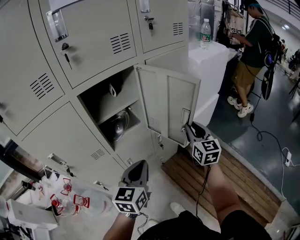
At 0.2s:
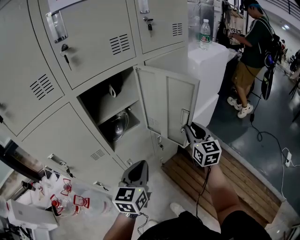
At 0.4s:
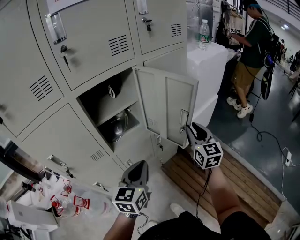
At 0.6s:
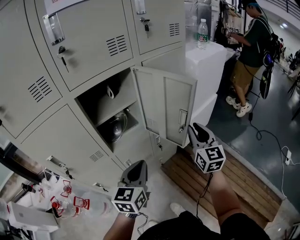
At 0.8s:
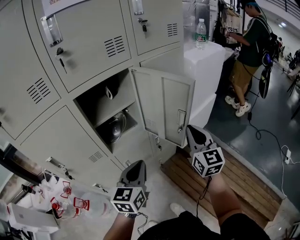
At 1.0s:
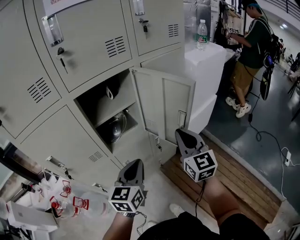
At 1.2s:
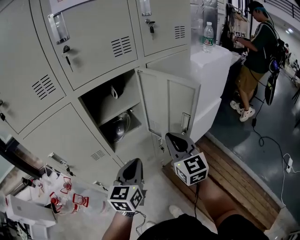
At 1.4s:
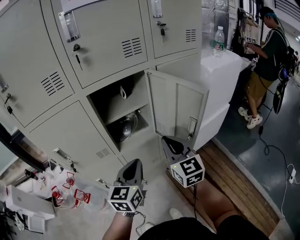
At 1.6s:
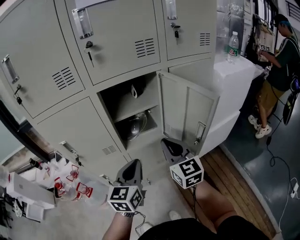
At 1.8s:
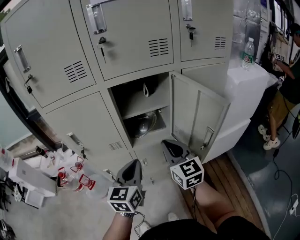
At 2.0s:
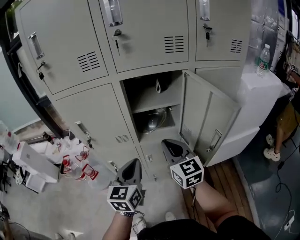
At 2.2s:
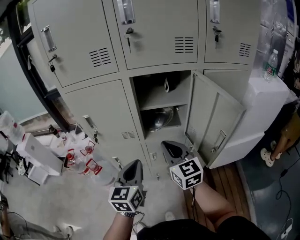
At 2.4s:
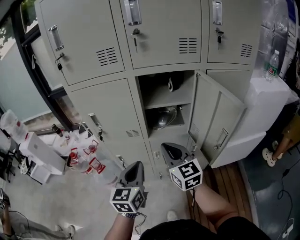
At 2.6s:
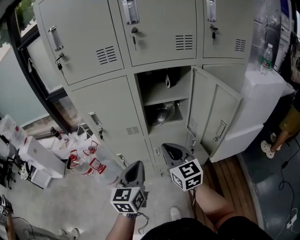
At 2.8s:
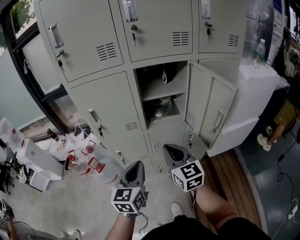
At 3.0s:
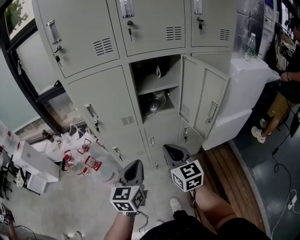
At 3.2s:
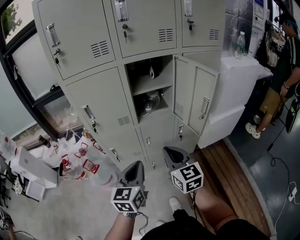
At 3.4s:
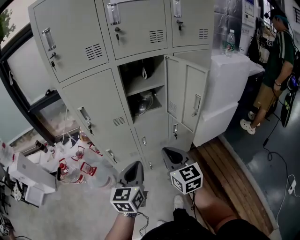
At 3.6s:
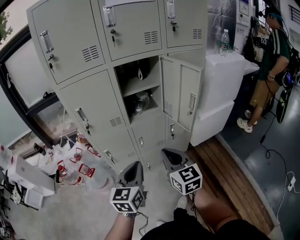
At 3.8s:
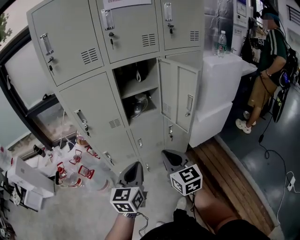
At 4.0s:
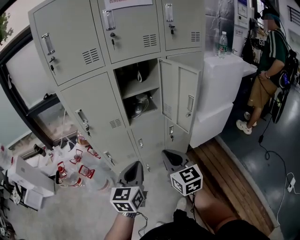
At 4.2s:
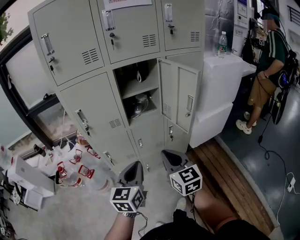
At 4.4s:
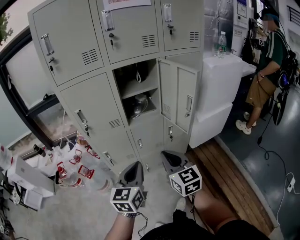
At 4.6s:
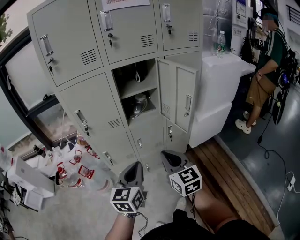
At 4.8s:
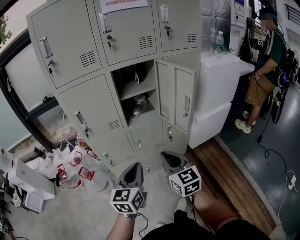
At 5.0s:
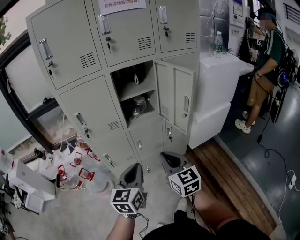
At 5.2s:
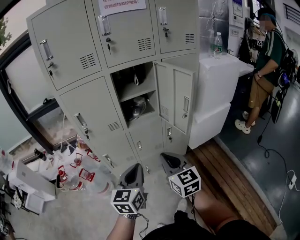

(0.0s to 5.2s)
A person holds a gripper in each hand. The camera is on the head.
0.0s - 1.8s: The left gripper shifts by about 5 cm, and swivels about 30 degrees. Meanwhile the right gripper ends up some 20 cm from where it was, rotates roughly 30 degrees, and closes.
1.8s - 3.4s: The grippers both shift backward by some 20 cm.
3.4s - 5.2s: The grippers stay close to where they were, moving slightly.

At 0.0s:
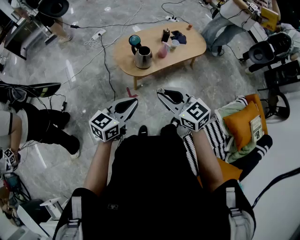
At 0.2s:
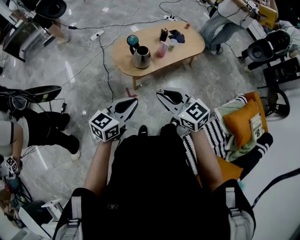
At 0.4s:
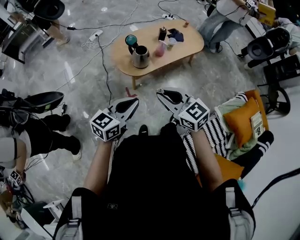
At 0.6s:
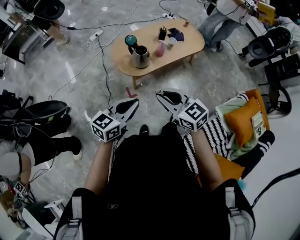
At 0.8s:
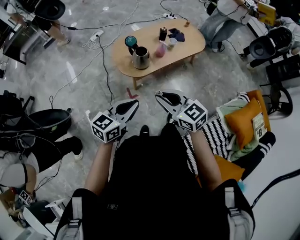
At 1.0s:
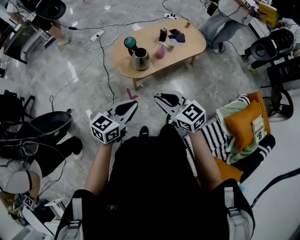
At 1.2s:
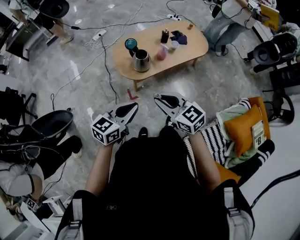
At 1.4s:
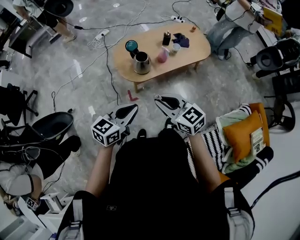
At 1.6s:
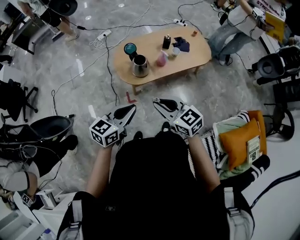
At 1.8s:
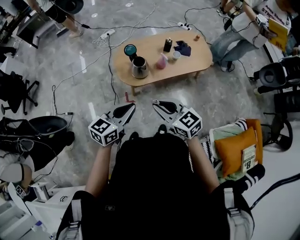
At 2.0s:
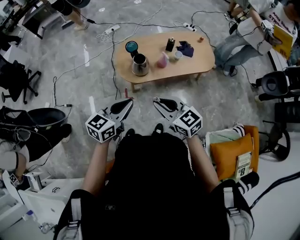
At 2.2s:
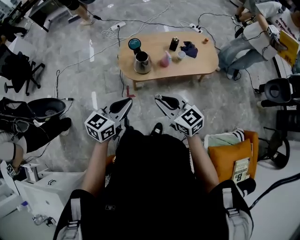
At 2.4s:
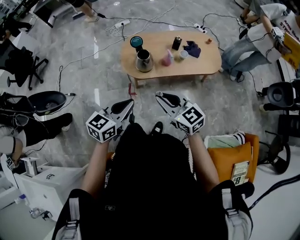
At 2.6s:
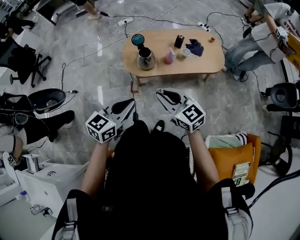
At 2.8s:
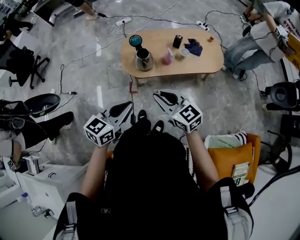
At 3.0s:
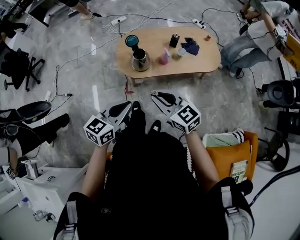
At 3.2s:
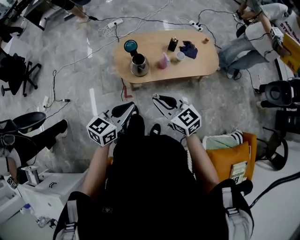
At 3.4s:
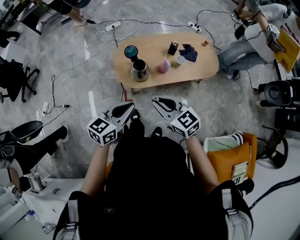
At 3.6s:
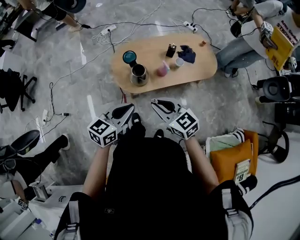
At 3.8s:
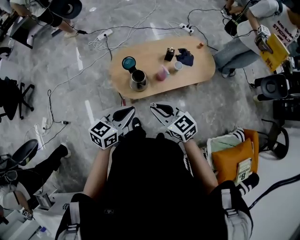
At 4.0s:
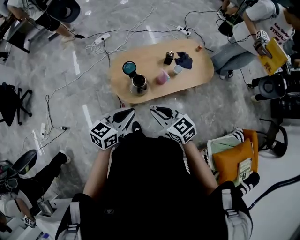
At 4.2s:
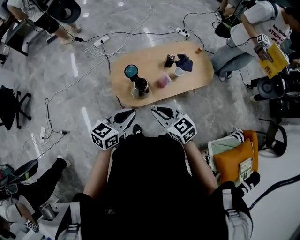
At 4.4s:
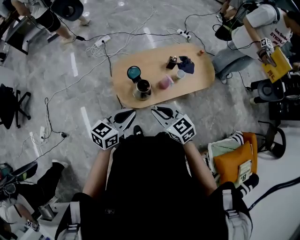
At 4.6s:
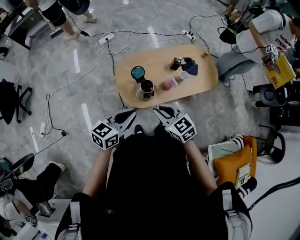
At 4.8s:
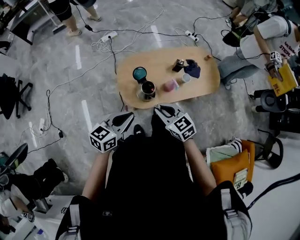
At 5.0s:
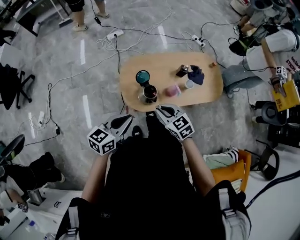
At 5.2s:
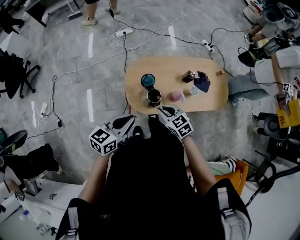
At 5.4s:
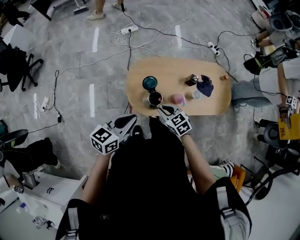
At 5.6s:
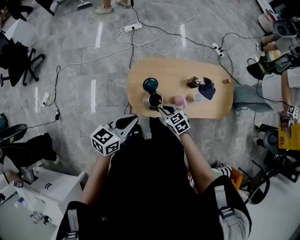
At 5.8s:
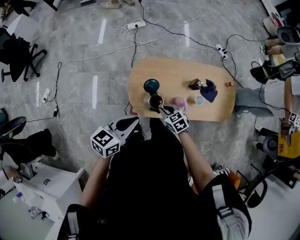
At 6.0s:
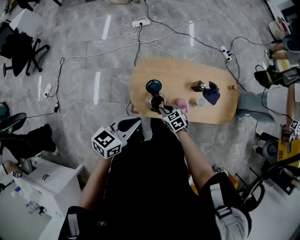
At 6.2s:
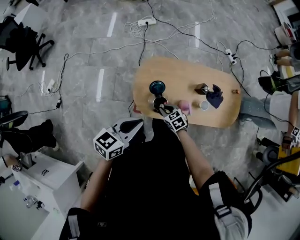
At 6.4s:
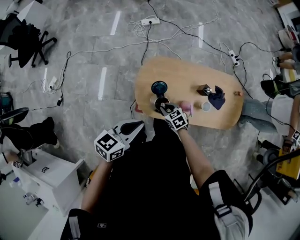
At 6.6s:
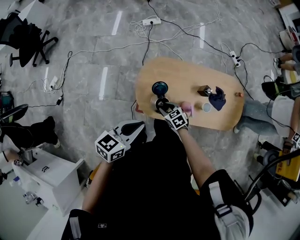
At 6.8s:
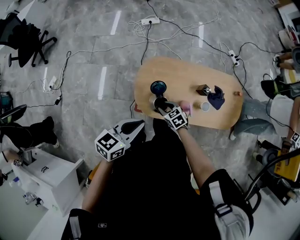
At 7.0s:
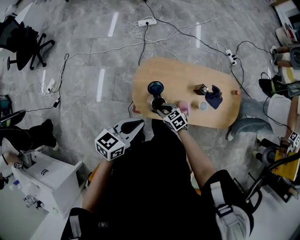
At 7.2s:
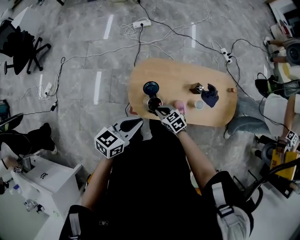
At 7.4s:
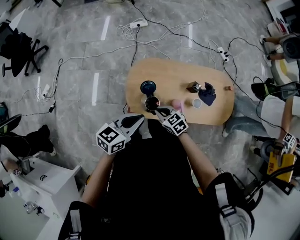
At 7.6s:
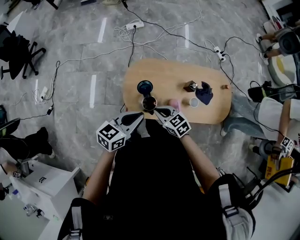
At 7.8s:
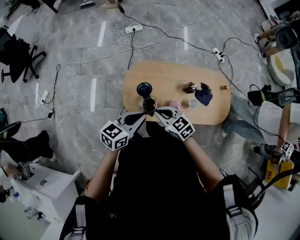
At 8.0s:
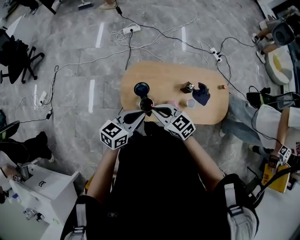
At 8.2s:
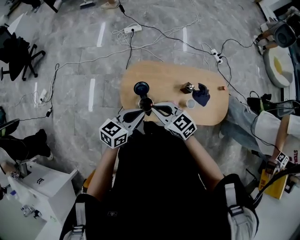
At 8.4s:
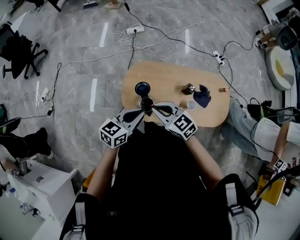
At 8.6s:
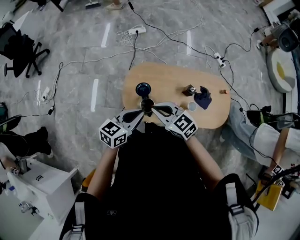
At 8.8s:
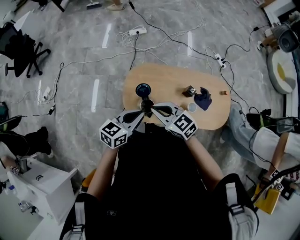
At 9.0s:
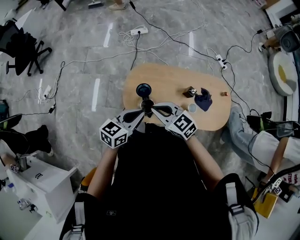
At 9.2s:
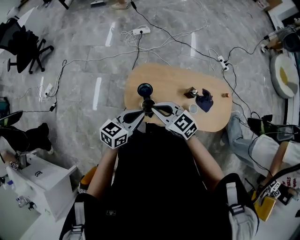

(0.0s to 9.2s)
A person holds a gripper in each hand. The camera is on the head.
0.0s - 1.6s: Both grippers move to the right and forward, about 10 cm.
1.6s - 3.0s: The grippers both shift to the right by approximately 10 cm.
3.0s - 4.6s: The two grippers go approximately 20 cm forward and to the left.
4.6s - 6.2s: The left gripper is displaced forward by some 10 cm, and rotates some 20 degrees. The right gripper moves downward and forward, some 30 cm, and rotates roughly 30 degrees.
6.2s - 7.6s: The right gripper travels upward by approximately 10 cm, and opens, then closes once more. Meanwhile the left gripper moves to the right, about 5 cm.
7.6s - 9.2s: The right gripper is displaced upward by about 10 cm.

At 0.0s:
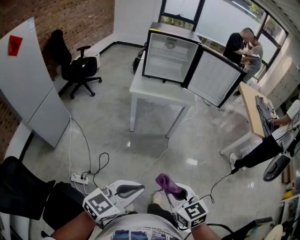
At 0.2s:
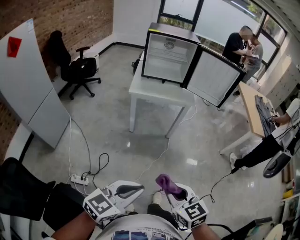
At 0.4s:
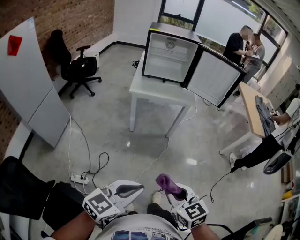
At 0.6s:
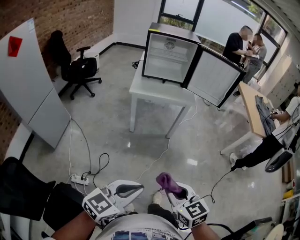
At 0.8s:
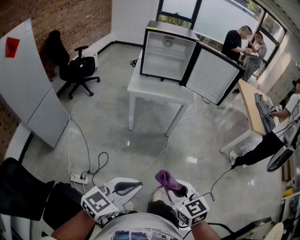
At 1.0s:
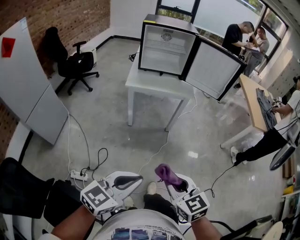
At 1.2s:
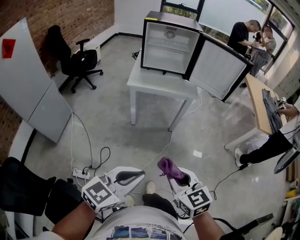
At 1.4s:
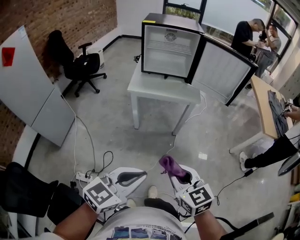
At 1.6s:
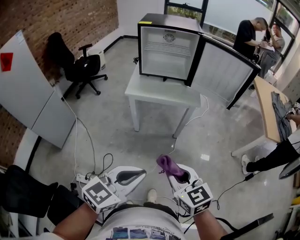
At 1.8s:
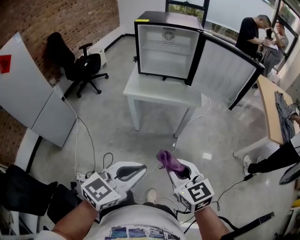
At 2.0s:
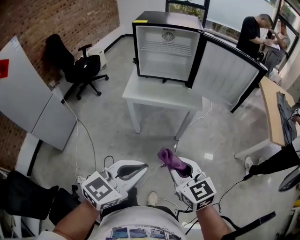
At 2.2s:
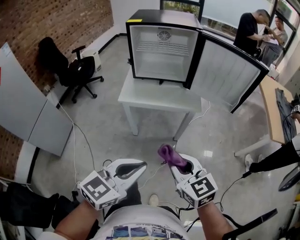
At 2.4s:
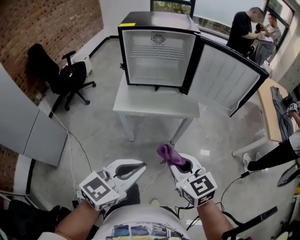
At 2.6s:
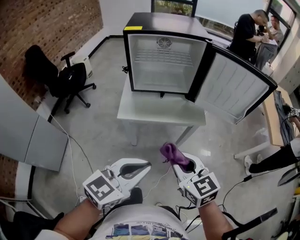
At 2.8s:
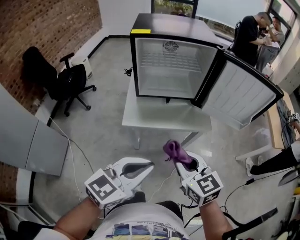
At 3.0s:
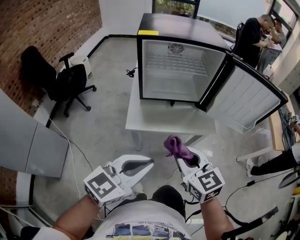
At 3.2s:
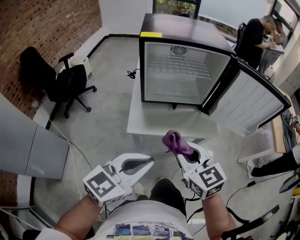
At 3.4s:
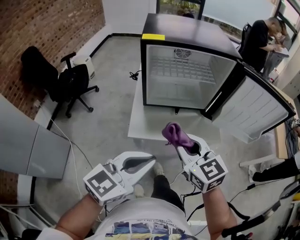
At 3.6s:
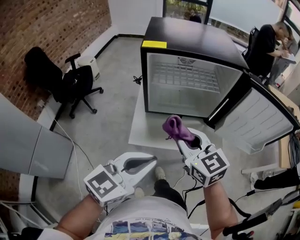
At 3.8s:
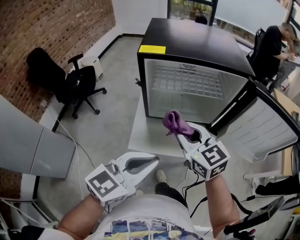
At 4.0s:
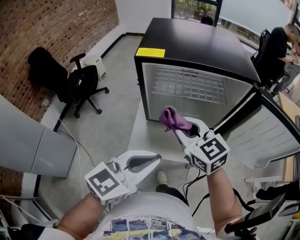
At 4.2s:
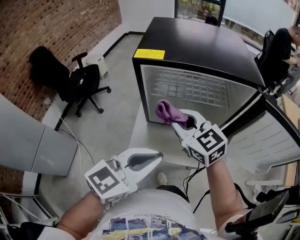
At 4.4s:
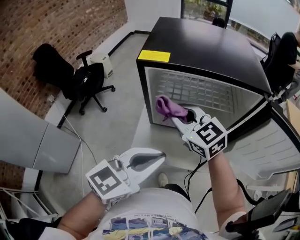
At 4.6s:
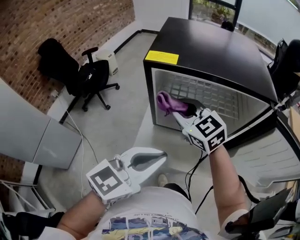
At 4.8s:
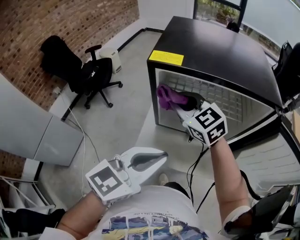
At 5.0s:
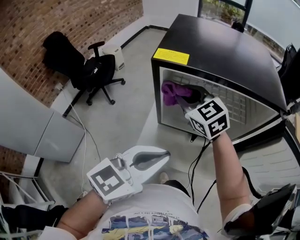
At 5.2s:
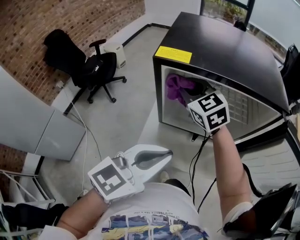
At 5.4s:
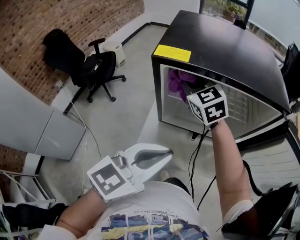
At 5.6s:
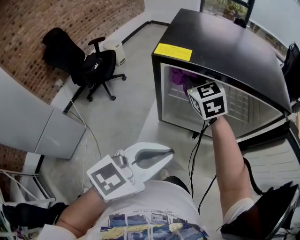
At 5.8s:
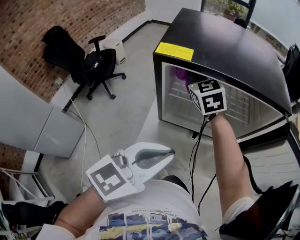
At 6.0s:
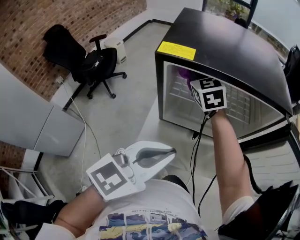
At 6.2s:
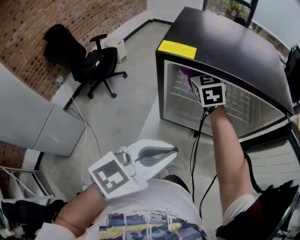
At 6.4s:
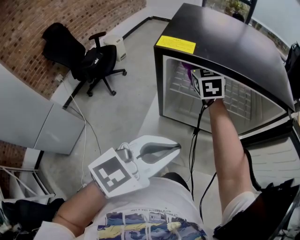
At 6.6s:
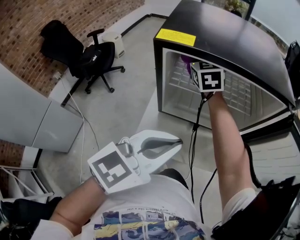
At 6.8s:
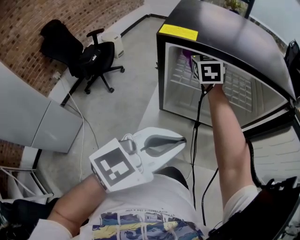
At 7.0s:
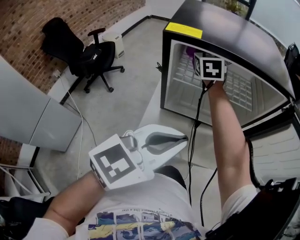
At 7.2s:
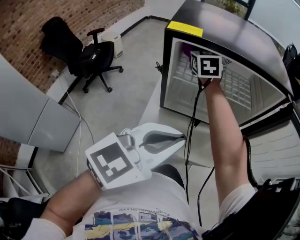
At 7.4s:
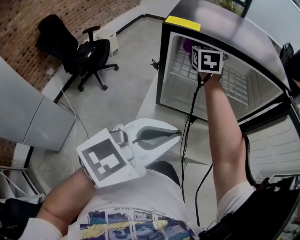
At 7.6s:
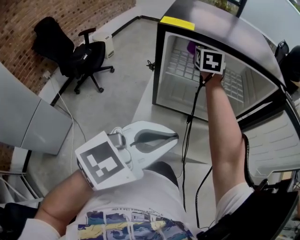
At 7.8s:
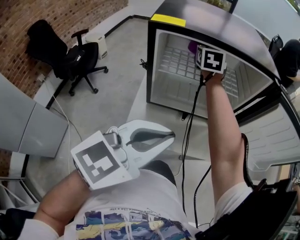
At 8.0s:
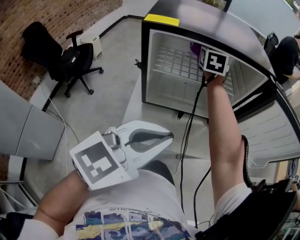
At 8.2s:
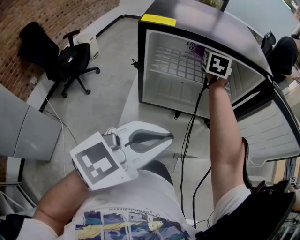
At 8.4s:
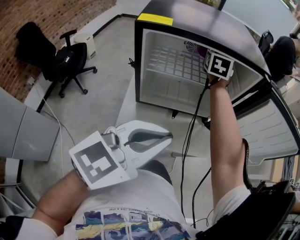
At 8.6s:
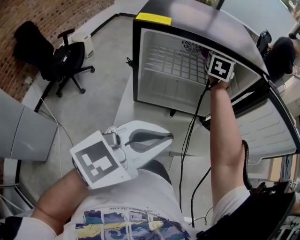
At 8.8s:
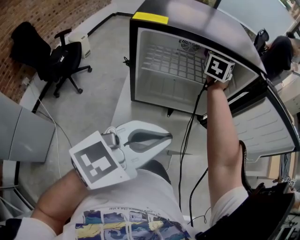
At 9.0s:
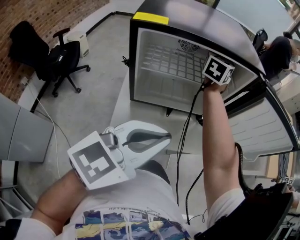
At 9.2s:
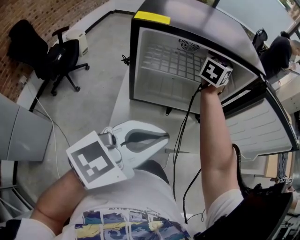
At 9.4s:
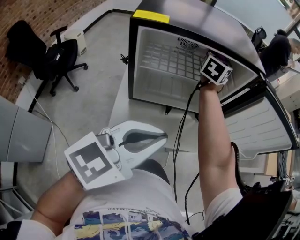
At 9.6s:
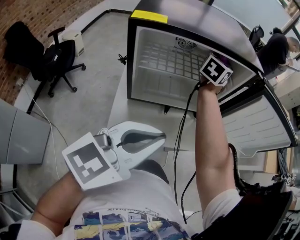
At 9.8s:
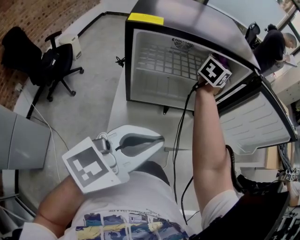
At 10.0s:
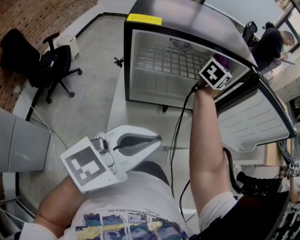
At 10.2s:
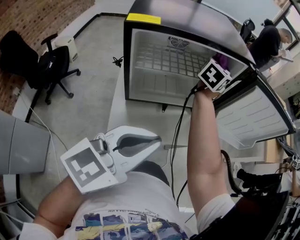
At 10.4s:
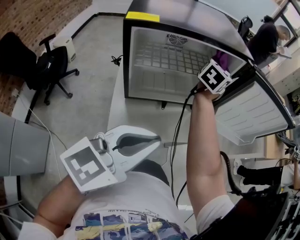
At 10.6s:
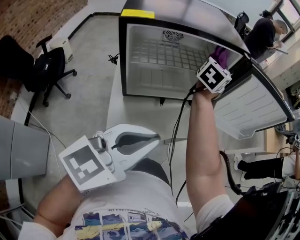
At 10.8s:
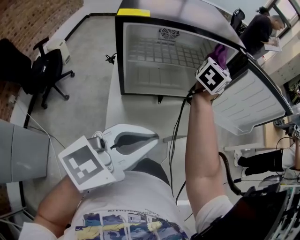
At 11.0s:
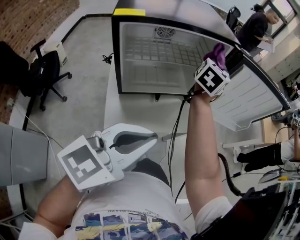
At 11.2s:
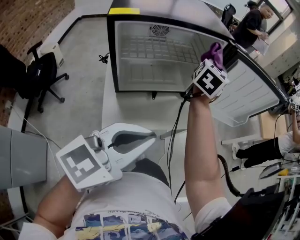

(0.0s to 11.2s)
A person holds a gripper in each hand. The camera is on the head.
0.0s - 1.6s: The two grippers go about 15 cm forward.
1.6s - 3.2s: The grippers both shift forward and to the left by about 35 cm.
3.2s - 4.8s: The left gripper shifts approximately 20 cm forward. Meanwhile the right gripper heads forward, covering roughly 30 cm, and turns by roughly 30 degrees.
4.8s - 6.4s: The right gripper travels forward by roughly 15 cm, and rotates approximately 30 degrees.
6.4s - 8.0s: The right gripper moves to the right and forward, some 15 cm, and changes its angle by approximately 30 degrees.
8.0s - 9.6s: The right gripper heads to the right, covering approximately 15 cm, and swivels roughly 30 degrees.
9.6s - 11.2s: The right gripper is displaced to the right and backward by approximately 15 cm; the left gripper travels backward by approximately 5 cm.
